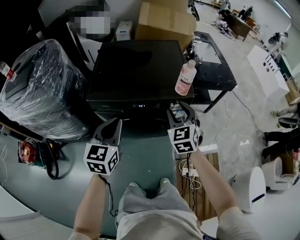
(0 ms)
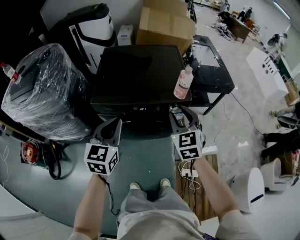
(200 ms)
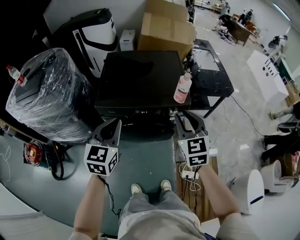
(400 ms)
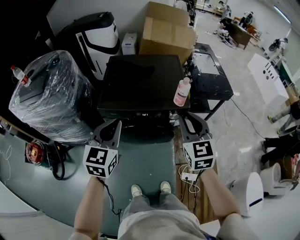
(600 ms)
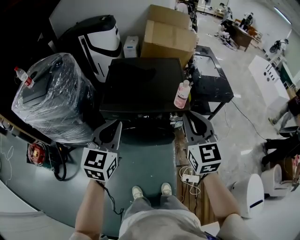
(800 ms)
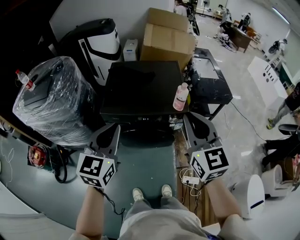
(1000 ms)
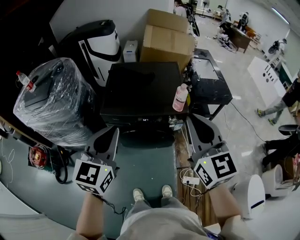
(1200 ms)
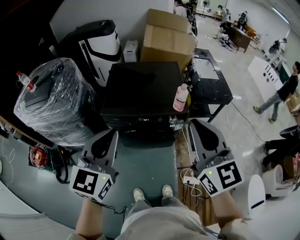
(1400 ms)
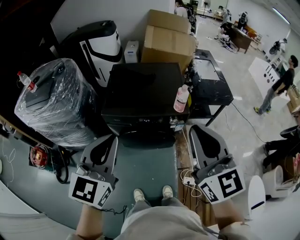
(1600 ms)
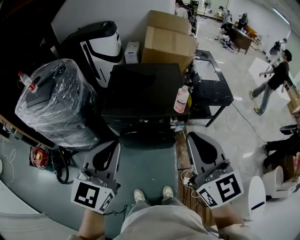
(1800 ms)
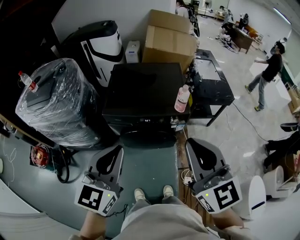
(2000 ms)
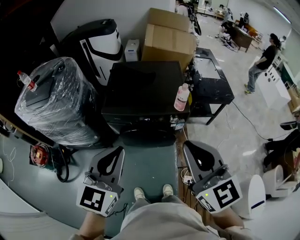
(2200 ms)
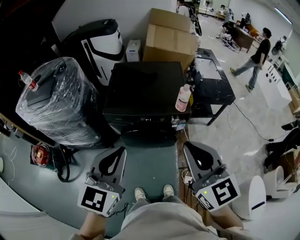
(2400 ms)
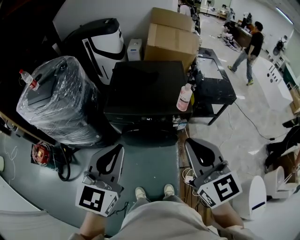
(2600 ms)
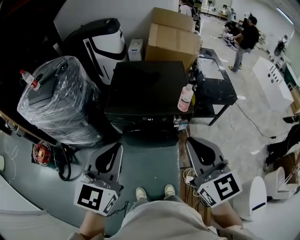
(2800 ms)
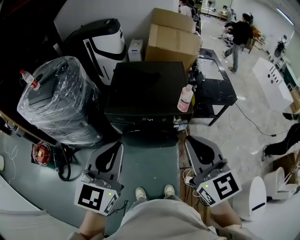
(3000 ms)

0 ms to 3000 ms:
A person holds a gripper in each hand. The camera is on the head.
0 ms to 1600 ms: The two grippers go roughly 35 cm upward and backward. The right gripper rotates about 30 degrees, and closes.
1600 ms to 3000 ms: The grippers make only small movements.

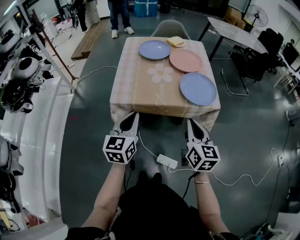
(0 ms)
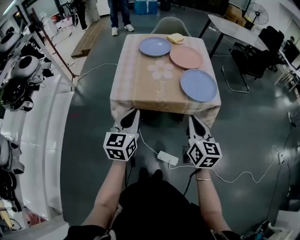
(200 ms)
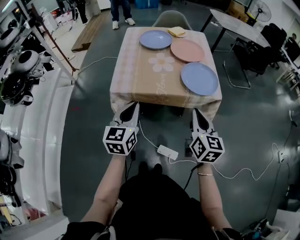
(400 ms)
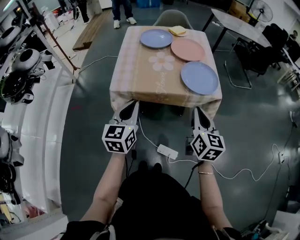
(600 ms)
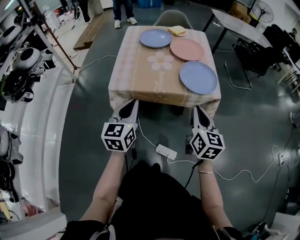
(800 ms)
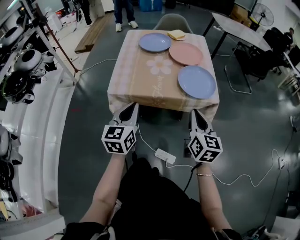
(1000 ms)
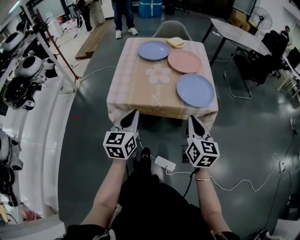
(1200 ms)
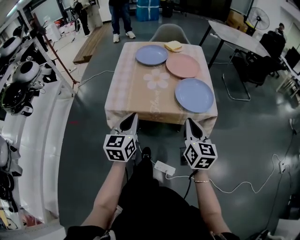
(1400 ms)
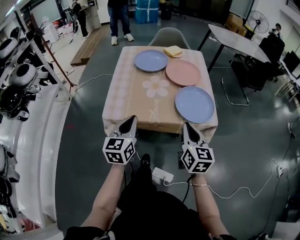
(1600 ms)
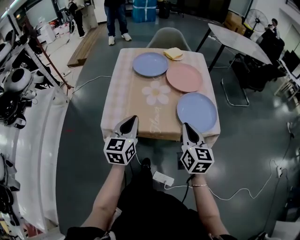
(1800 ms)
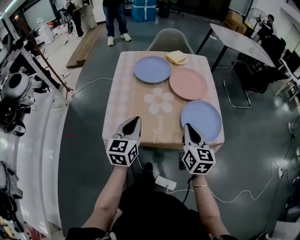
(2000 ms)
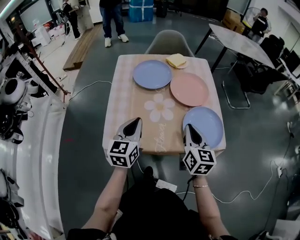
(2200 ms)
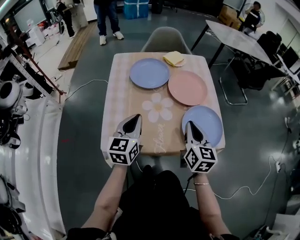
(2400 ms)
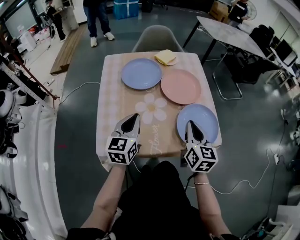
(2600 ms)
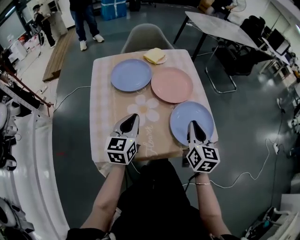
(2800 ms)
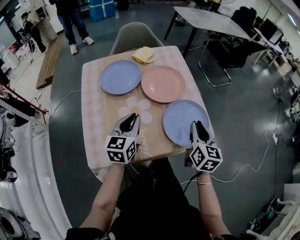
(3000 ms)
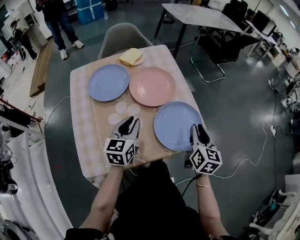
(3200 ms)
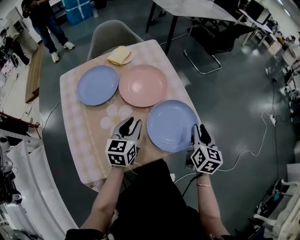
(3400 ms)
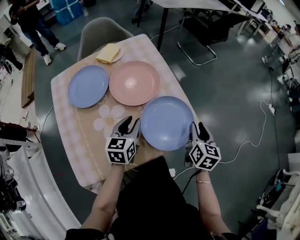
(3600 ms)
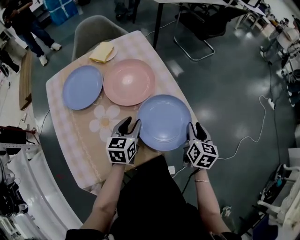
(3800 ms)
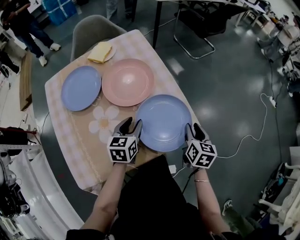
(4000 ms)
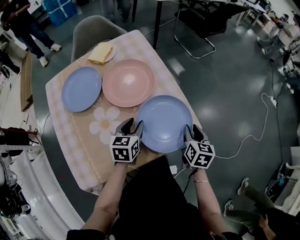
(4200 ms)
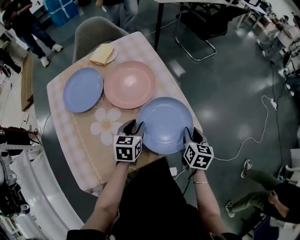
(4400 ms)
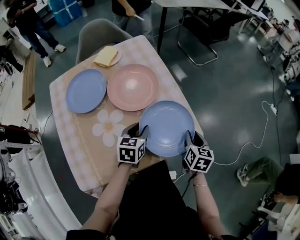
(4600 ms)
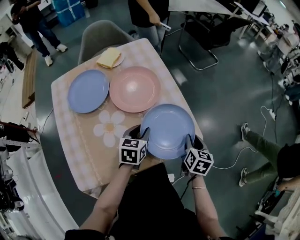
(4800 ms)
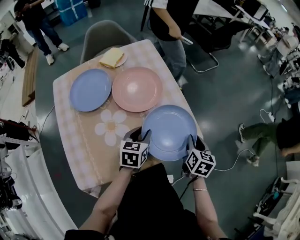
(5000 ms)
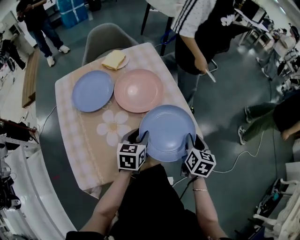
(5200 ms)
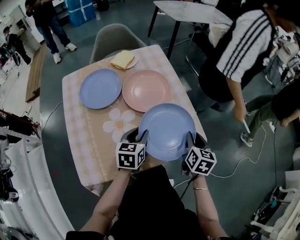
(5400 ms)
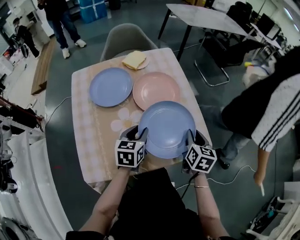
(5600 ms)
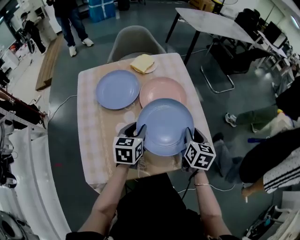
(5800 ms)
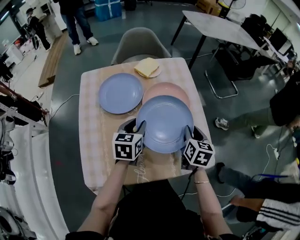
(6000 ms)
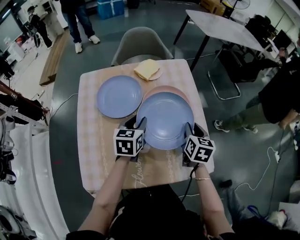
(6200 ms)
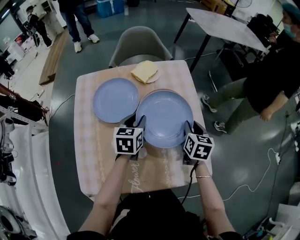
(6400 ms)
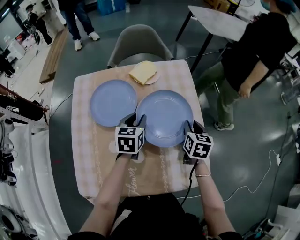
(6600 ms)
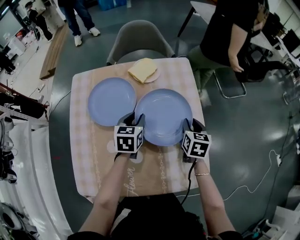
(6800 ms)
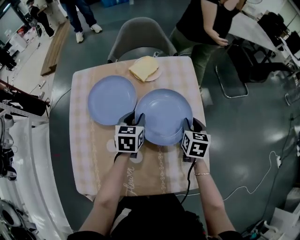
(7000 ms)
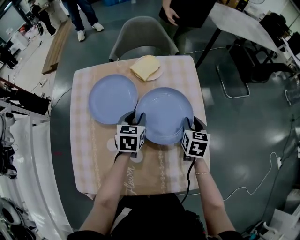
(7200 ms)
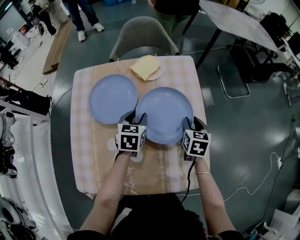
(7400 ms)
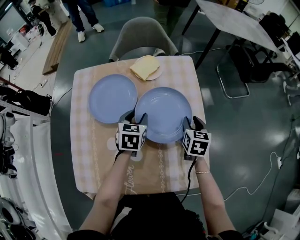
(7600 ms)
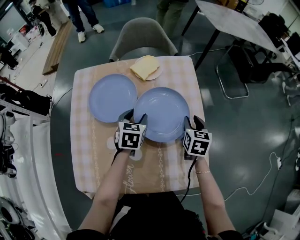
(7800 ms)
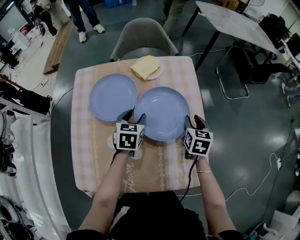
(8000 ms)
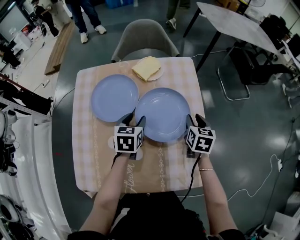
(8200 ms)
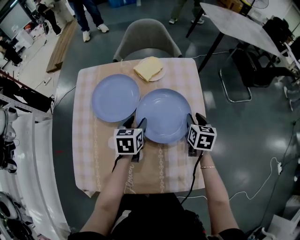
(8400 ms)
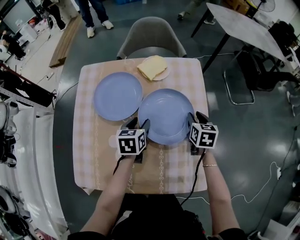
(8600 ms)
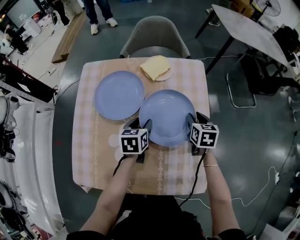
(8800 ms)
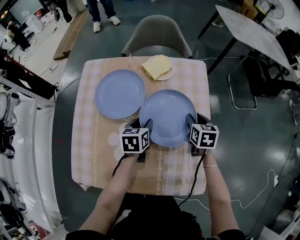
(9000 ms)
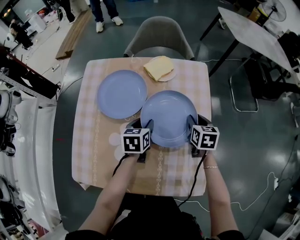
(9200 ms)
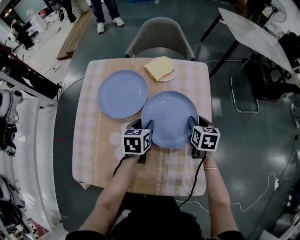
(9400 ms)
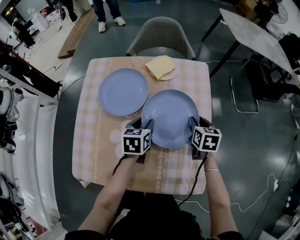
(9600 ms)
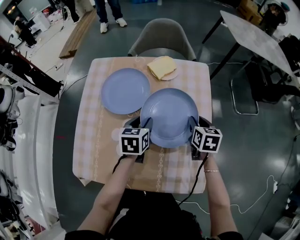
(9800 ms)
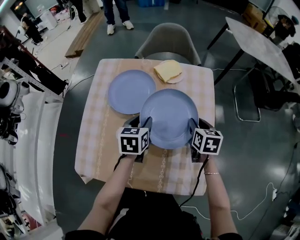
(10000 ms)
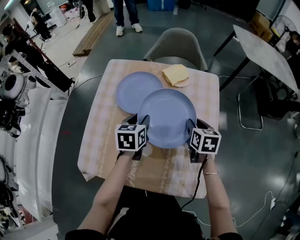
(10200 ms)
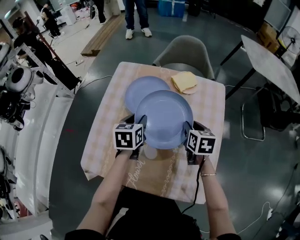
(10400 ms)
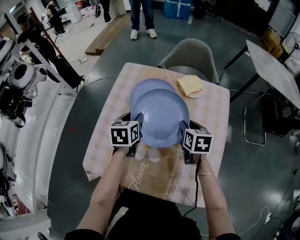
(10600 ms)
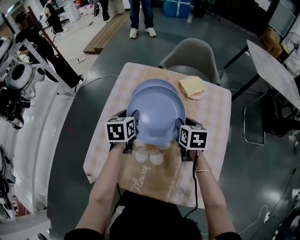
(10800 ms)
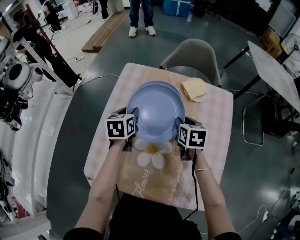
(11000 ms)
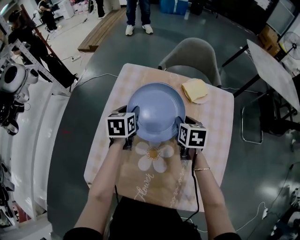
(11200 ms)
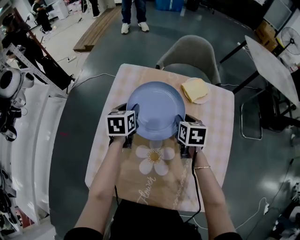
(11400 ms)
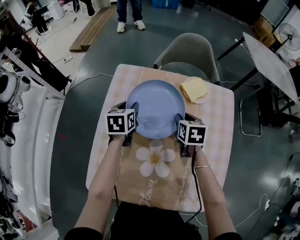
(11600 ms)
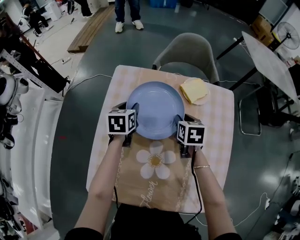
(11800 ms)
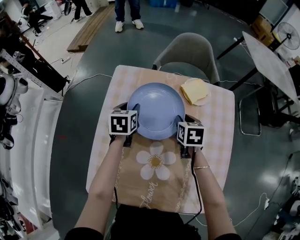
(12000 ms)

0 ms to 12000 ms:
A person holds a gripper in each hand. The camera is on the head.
0 ms to 1600 ms: The two grippers go some 10 cm forward.
1600 ms to 3000 ms: The left gripper moves forward, roughly 25 cm, while the right gripper travels forward and to the right by approximately 20 cm, and turns by some 20 degrees.
3000 ms to 4400 ms: The left gripper heads to the right, downward and forward, covering some 20 cm, turns by roughly 30 degrees, and opens up. The right gripper heads downward and to the right, covering about 15 cm, and turns by some 20 degrees.
4400 ms to 6000 ms: The right gripper moves to the left, forward and upward, some 20 cm. Meanwhile the left gripper is displaced to the left and upward by some 15 cm.
6000 ms to 7600 ms: Both grippers move forward and downward, about 15 cm.
7600 ms to 9000 ms: The left gripper turns by approximately 20 degrees. The right gripper moves some 5 cm.
9000 ms to 10400 ms: The grippers both shift to the left and upward by some 15 cm.
10400 ms to 12000 ms: The two grippers go approximately 15 cm forward and to the left.

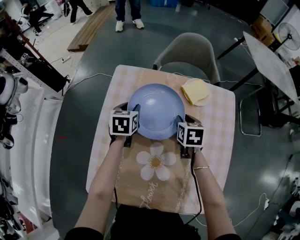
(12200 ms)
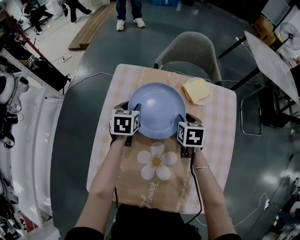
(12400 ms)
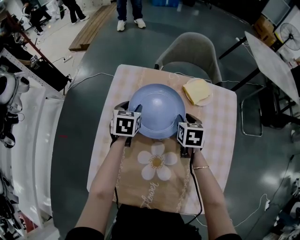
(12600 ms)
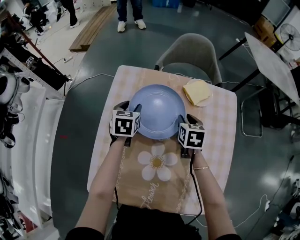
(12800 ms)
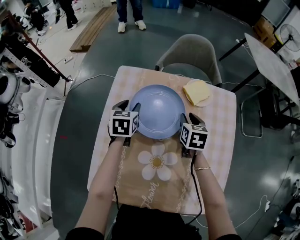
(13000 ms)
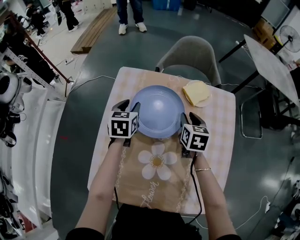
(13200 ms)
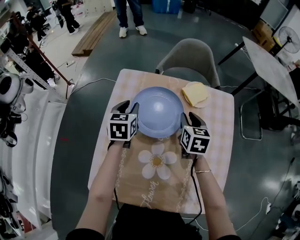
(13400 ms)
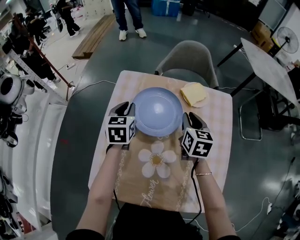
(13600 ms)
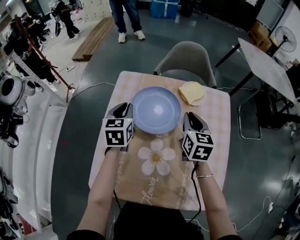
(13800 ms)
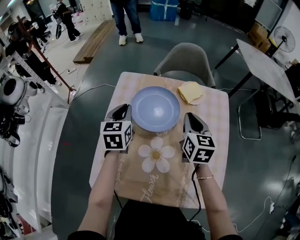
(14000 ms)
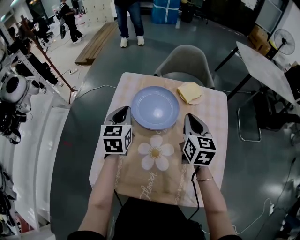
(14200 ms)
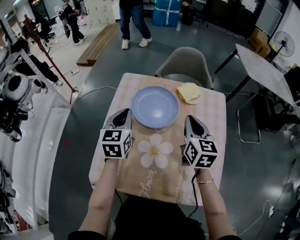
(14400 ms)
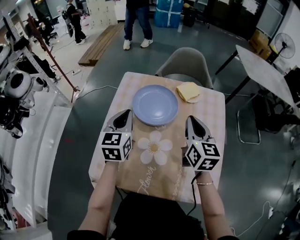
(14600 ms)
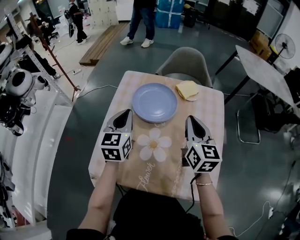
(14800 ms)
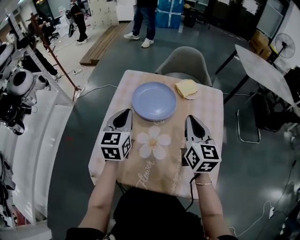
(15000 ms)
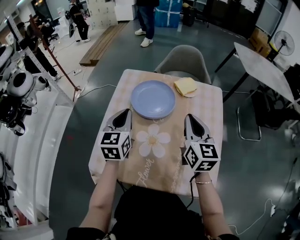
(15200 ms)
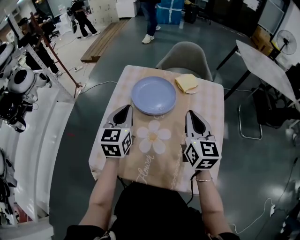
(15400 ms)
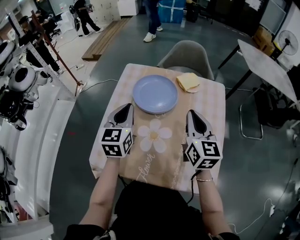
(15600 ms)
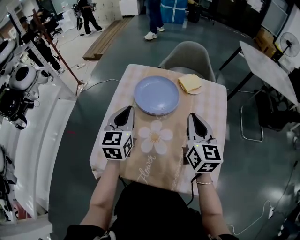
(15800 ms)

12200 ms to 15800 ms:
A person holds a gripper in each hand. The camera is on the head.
12200 ms to 14000 ms: Both grippers travel together upward and backward, about 15 cm. The right gripper changes its angle by about 30 degrees, and closes its fingers. The left gripper closes.
14000 ms to 15800 ms: The left gripper travels backward by approximately 15 cm, while the right gripper travels backward and upward by about 15 cm.

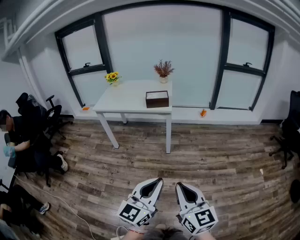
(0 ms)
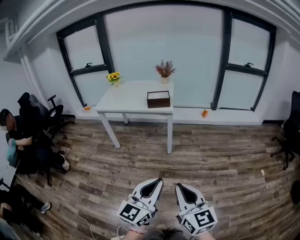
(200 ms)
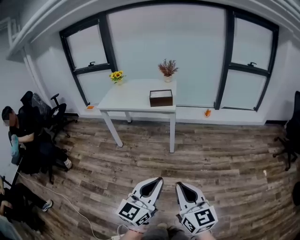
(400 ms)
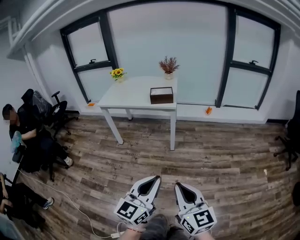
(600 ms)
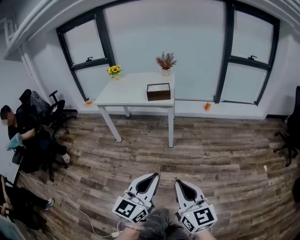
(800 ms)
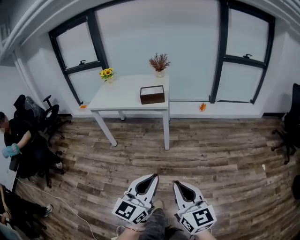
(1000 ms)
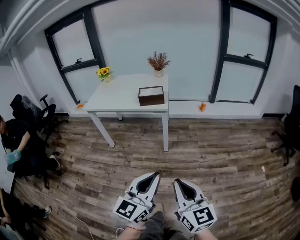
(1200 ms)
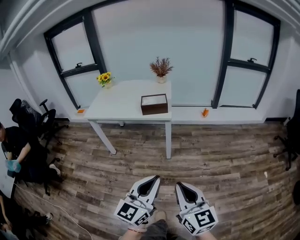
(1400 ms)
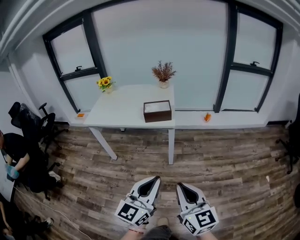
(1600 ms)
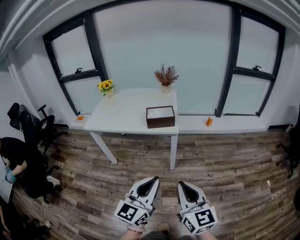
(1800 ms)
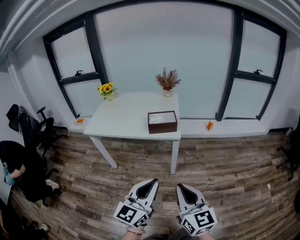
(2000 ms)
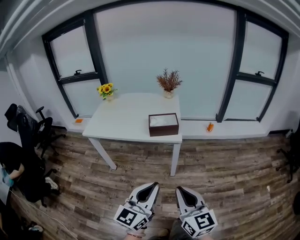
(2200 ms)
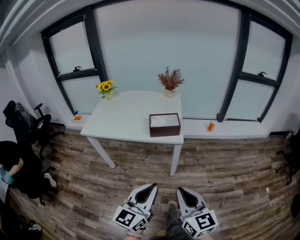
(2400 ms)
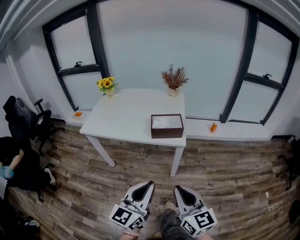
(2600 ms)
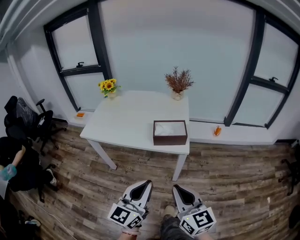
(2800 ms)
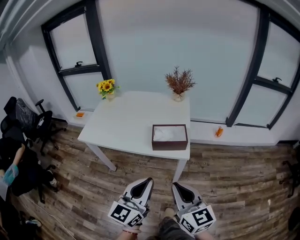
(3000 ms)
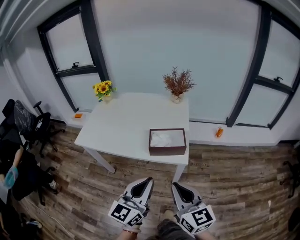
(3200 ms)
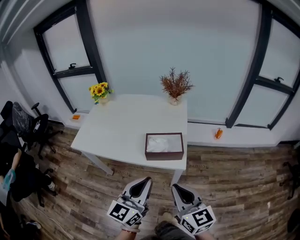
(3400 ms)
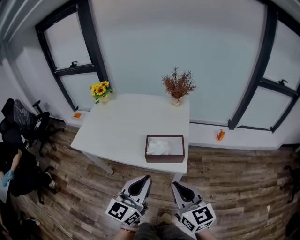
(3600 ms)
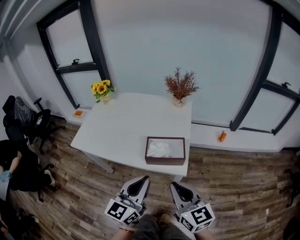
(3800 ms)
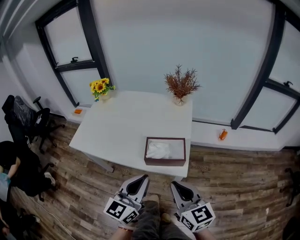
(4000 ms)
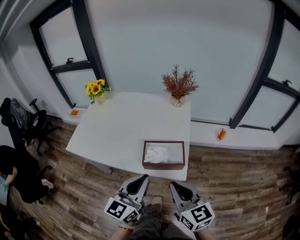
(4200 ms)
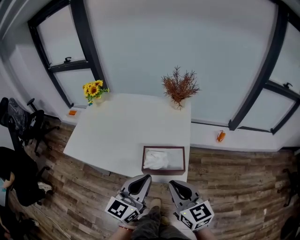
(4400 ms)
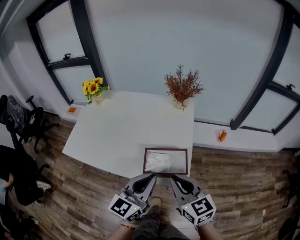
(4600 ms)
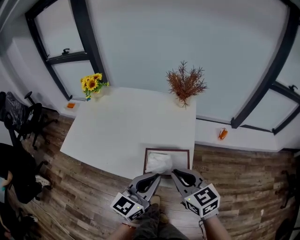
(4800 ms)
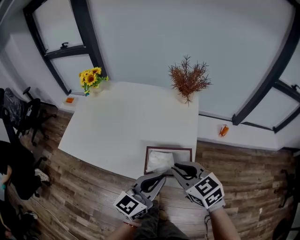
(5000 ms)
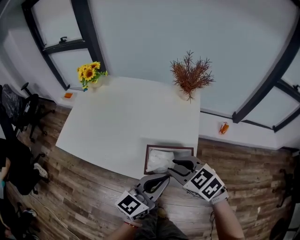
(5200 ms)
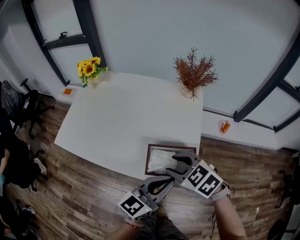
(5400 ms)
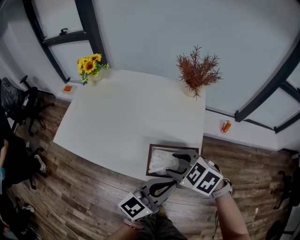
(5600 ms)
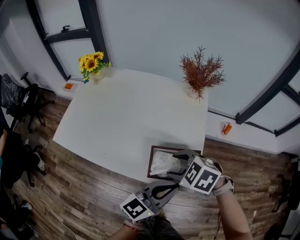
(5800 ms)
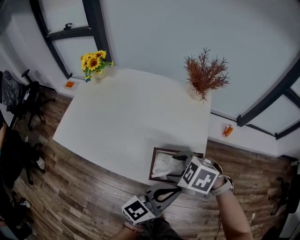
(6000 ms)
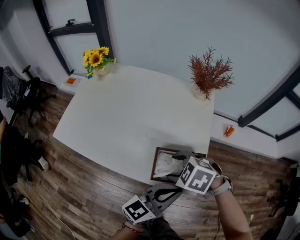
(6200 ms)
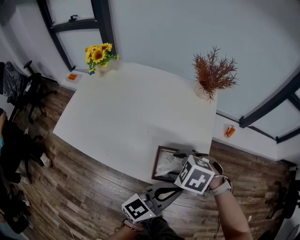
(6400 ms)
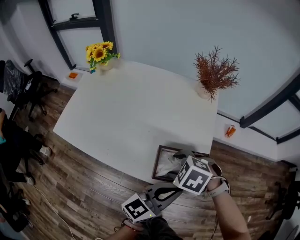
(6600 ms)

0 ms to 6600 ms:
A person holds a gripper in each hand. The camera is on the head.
0 ms to 1600 ms: Both grippers travel together forward, some 20 cm.
1600 ms to 3200 ms: The grippers both shift forward by some 30 cm.
3200 ms to 5000 ms: Both grippers move forward, approximately 25 cm. The right gripper rotates about 30 degrees.
5000 ms to 6600 ms: The right gripper travels downward by about 10 cm, angles its fingers downward, by approximately 40 degrees, and opens up; the left gripper moves roughly 5 cm.
